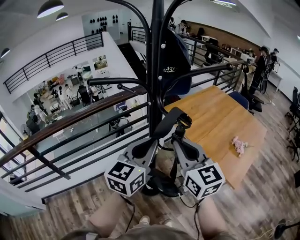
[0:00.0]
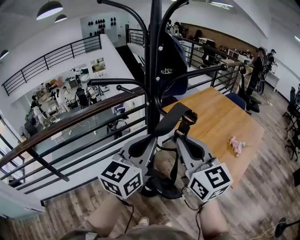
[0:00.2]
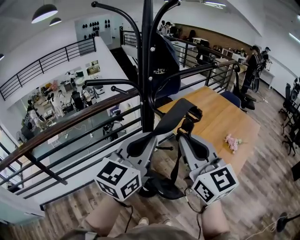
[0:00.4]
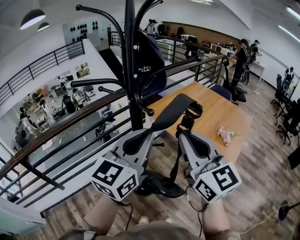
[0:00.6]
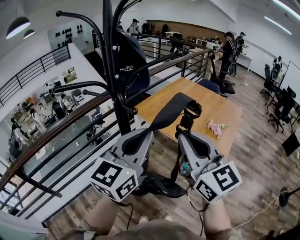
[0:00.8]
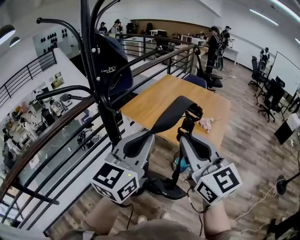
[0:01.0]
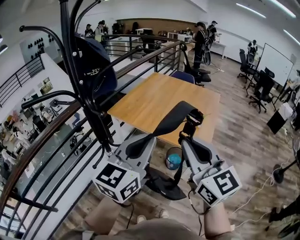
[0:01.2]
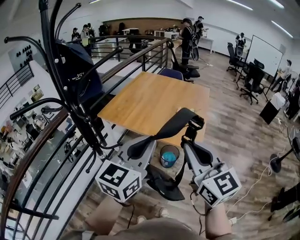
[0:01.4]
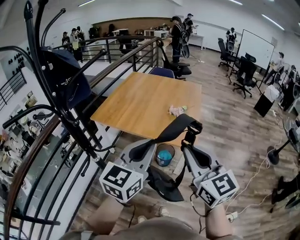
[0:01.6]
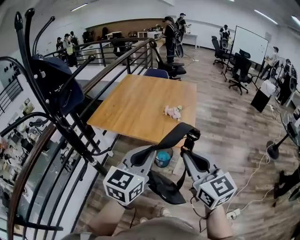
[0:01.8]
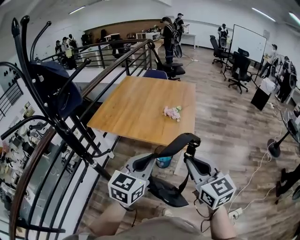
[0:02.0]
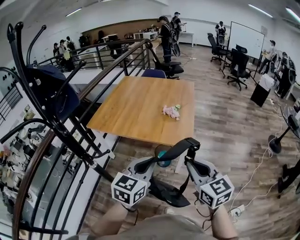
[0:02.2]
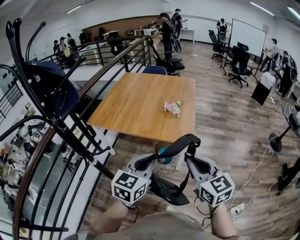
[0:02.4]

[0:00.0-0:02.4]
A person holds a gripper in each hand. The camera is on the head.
0.0 to 1.2 s: The right gripper ends up about 20 cm from where it was, and turns by some 20 degrees. The left gripper moves roughly 20 cm, and swivels roughly 30 degrees.
1.2 to 2.4 s: Both grippers travel together downward and to the right, approximately 20 cm. The left gripper rotates some 20 degrees. Meanwhile the right gripper turns by roughly 20 degrees.

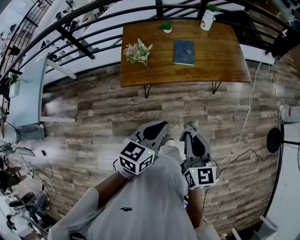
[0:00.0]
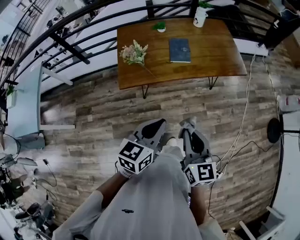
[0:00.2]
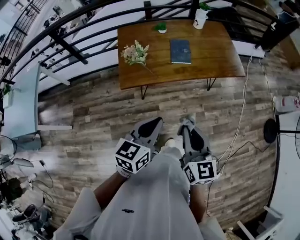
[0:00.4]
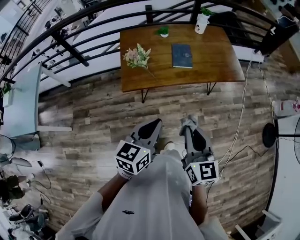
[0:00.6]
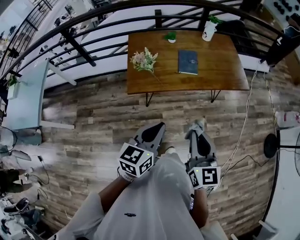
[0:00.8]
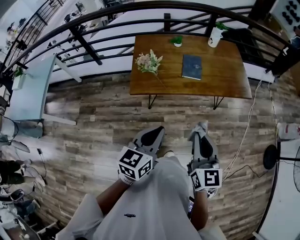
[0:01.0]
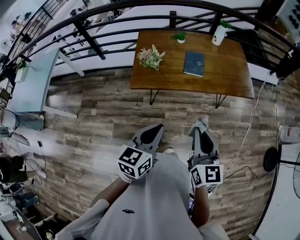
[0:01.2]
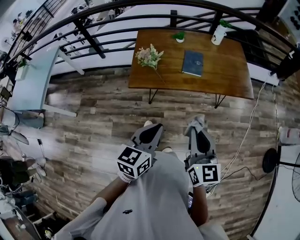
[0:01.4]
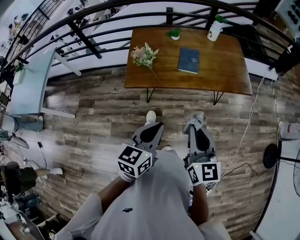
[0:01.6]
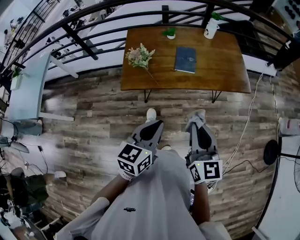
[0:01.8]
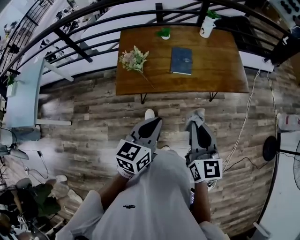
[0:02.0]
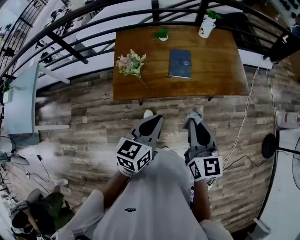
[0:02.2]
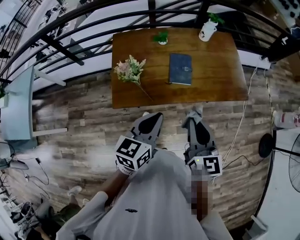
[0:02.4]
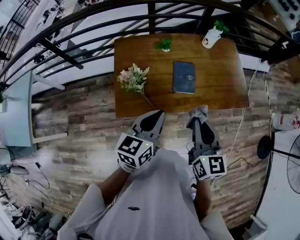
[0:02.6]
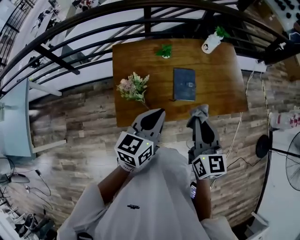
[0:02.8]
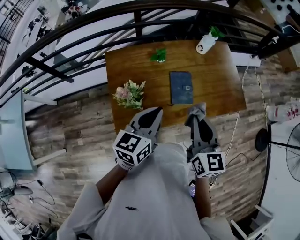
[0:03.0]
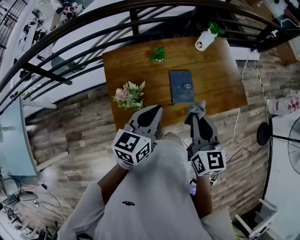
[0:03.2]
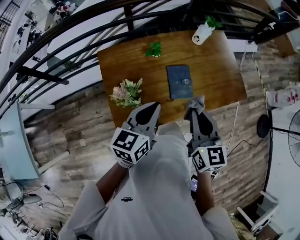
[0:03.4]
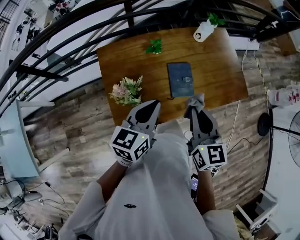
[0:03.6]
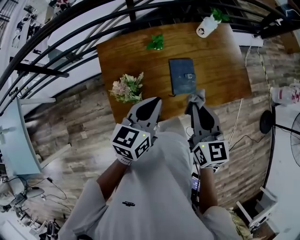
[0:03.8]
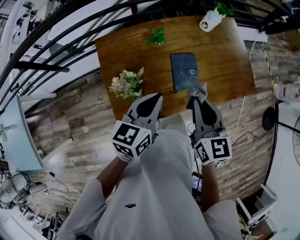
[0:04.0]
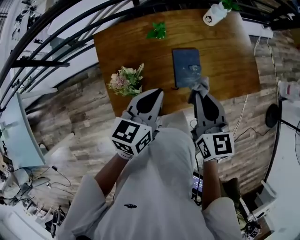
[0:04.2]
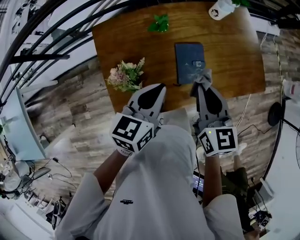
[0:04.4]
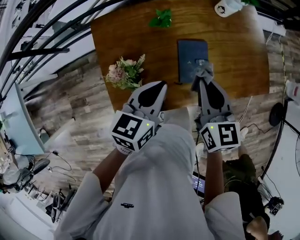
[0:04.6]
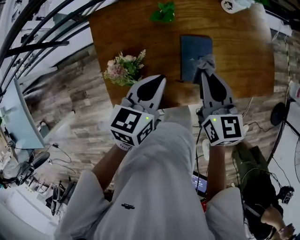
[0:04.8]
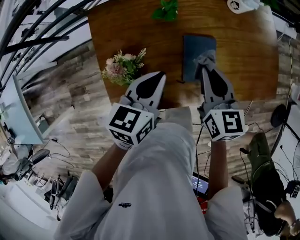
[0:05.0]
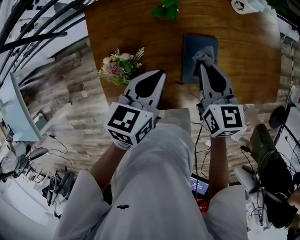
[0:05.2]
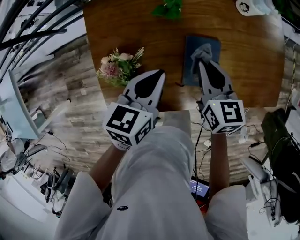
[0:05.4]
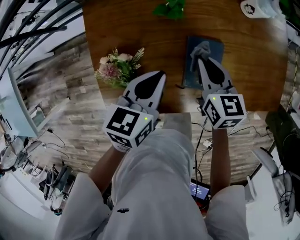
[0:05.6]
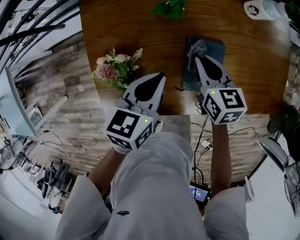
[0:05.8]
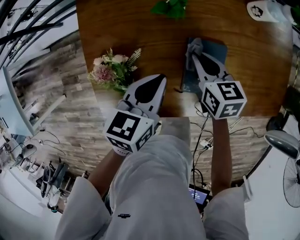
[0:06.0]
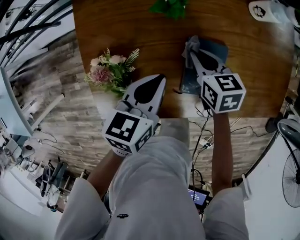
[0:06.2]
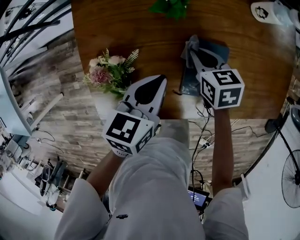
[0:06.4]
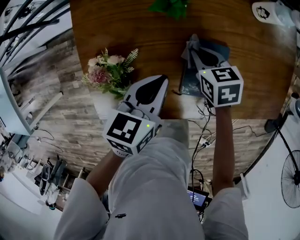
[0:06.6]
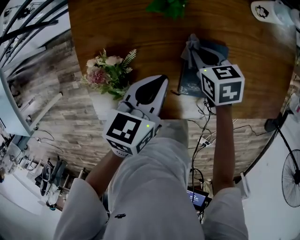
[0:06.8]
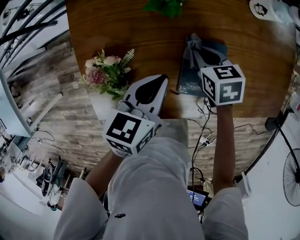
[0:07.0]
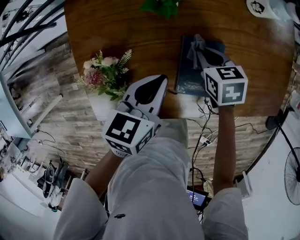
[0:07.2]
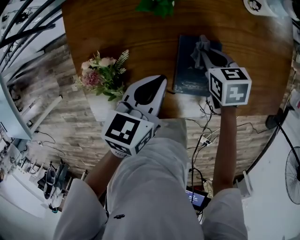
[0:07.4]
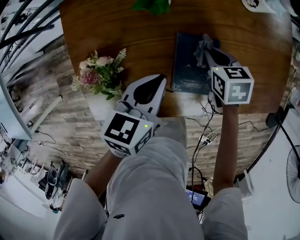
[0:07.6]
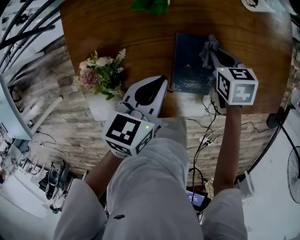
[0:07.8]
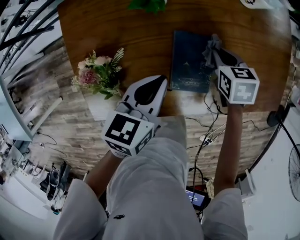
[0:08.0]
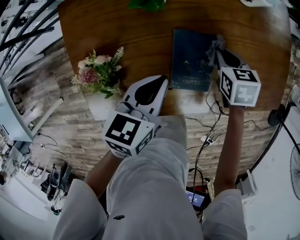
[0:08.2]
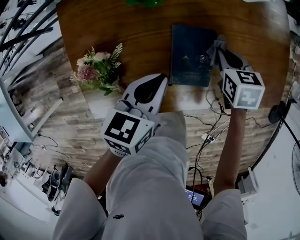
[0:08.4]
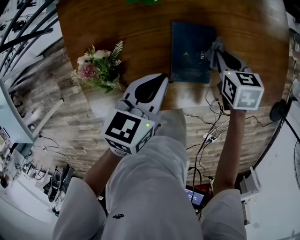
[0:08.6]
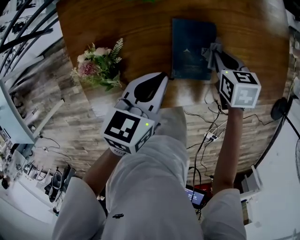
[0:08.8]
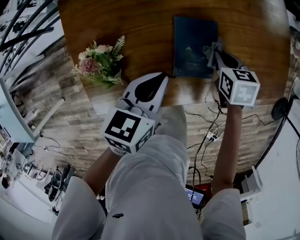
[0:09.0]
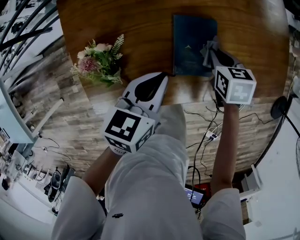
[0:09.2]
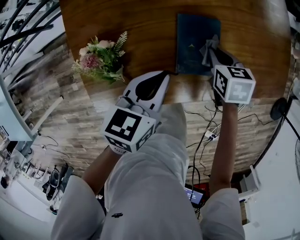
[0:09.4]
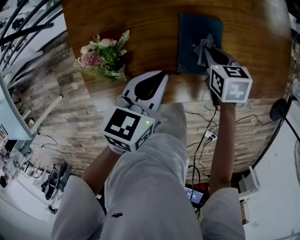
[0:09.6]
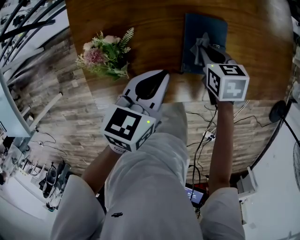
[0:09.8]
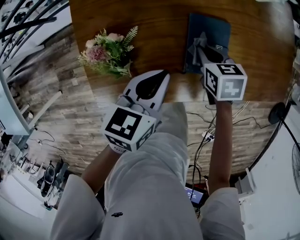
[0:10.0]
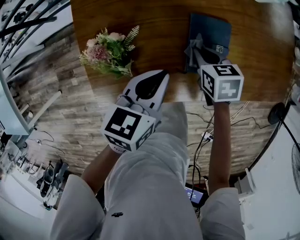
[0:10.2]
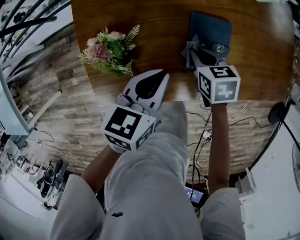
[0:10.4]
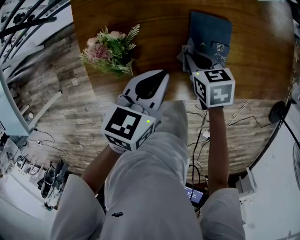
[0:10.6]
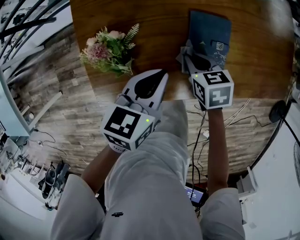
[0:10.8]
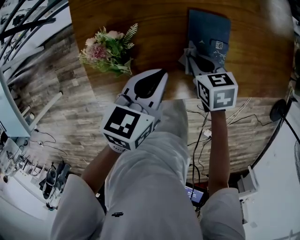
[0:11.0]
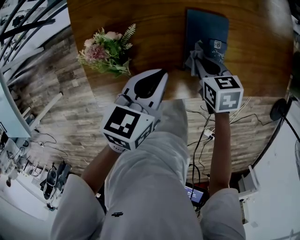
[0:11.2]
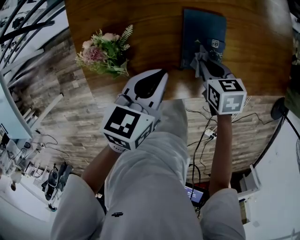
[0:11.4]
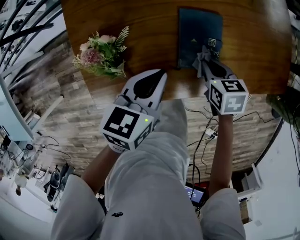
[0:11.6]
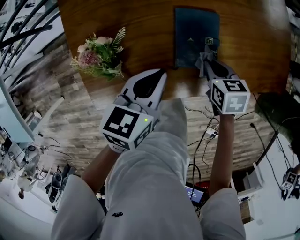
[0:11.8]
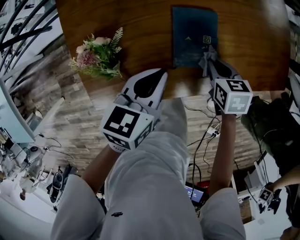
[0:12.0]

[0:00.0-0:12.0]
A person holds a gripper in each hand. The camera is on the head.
0.0 to 1.6 s: The right gripper moves approximately 5 cm.
1.6 to 3.0 s: The two grippers go some 30 cm forward.
3.0 to 4.4 s: Both grippers travel together forward and downward, about 10 cm.
4.4 to 6.0 s: The left gripper is displaced downward and forward by some 15 cm. The right gripper heads downward and forward, covering about 25 cm, and turns by approximately 30 degrees.
6.0 to 7.6 s: The right gripper goes some 10 cm to the right and downward.
7.6 to 9.0 s: The right gripper goes roughly 10 cm backward and to the right.
9.0 to 10.4 s: The right gripper shifts about 10 cm to the left.
10.4 to 12.0 s: The right gripper is displaced to the right by roughly 10 cm.

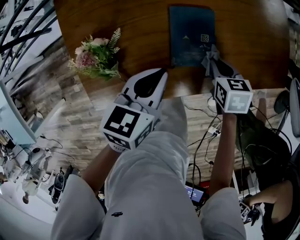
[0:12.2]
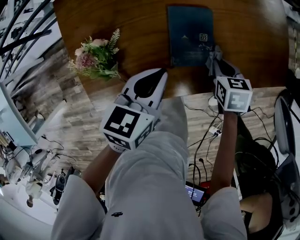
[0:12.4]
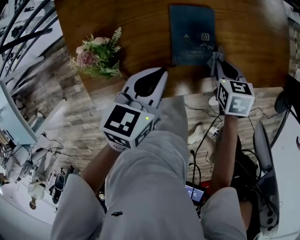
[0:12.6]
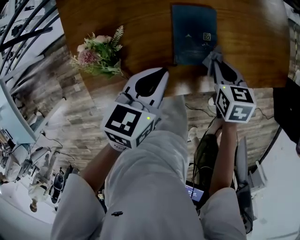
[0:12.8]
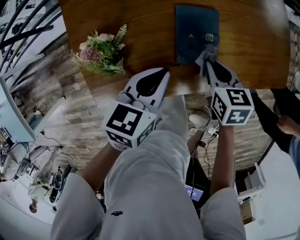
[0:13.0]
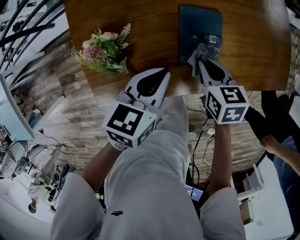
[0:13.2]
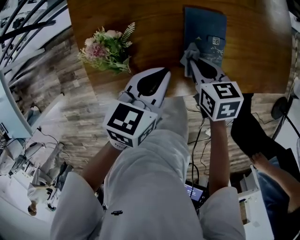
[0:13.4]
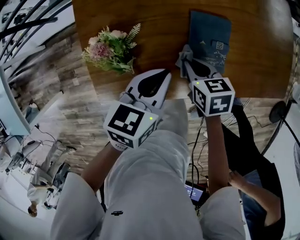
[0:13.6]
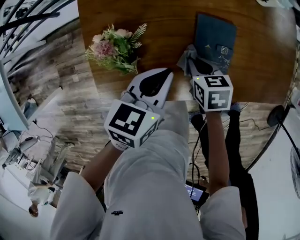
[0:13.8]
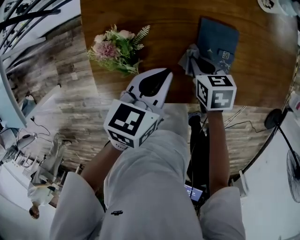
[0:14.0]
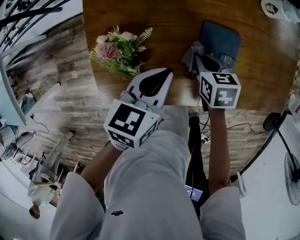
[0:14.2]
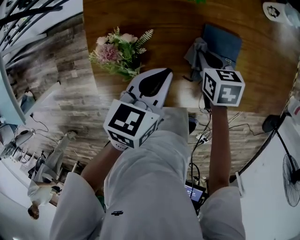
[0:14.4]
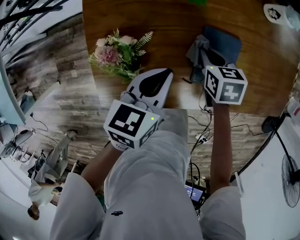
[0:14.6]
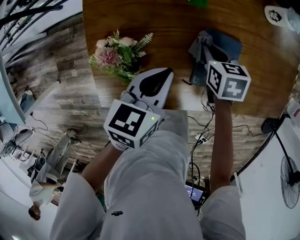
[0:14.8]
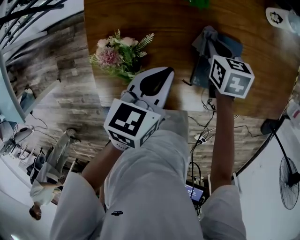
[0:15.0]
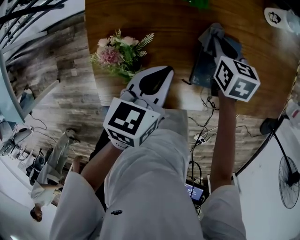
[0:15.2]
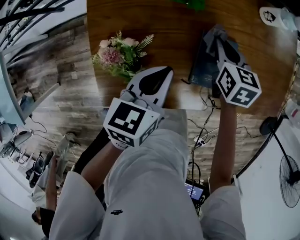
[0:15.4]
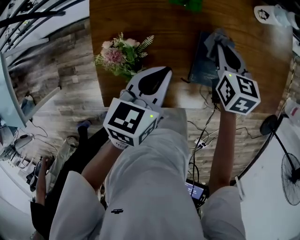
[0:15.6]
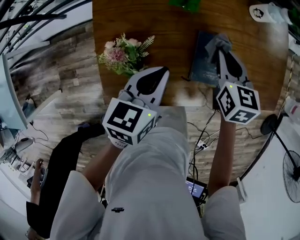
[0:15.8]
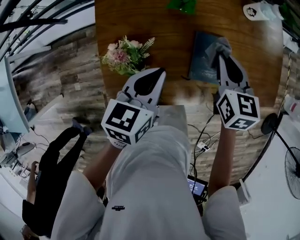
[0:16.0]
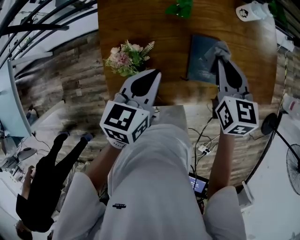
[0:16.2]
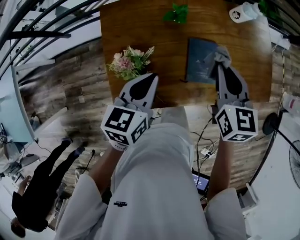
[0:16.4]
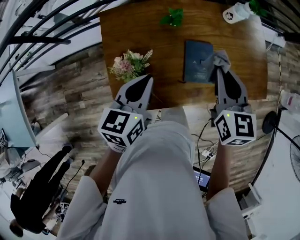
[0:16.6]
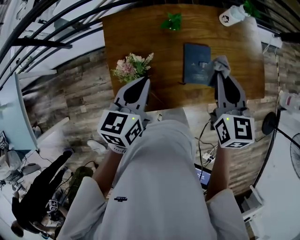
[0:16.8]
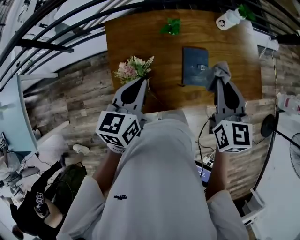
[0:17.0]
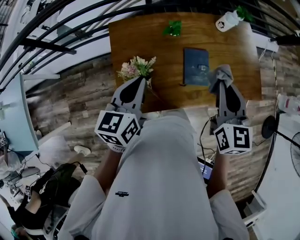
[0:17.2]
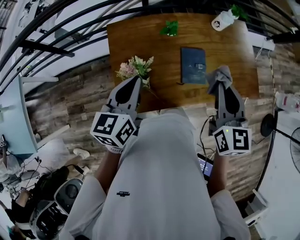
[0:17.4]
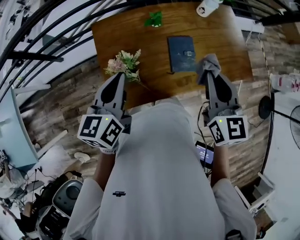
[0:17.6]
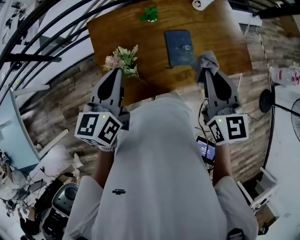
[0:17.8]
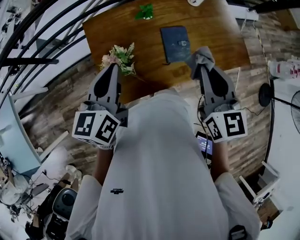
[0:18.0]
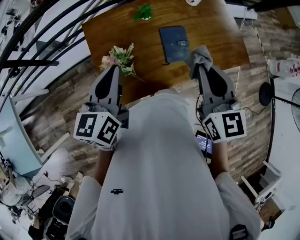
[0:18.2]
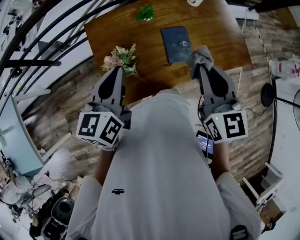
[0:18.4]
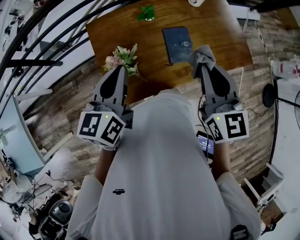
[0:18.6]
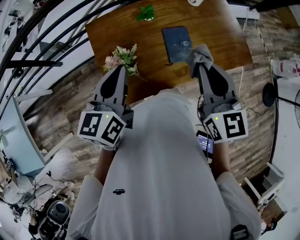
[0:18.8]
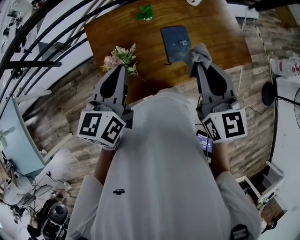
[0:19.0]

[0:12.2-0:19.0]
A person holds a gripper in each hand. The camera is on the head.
12.2 to 13.6 s: The right gripper heads to the left, covering approximately 15 cm.
13.6 to 15.0 s: The left gripper heads forward, covering approximately 5 cm. The right gripper moves forward, approximately 15 cm.
15.0 to 16.2 s: The right gripper heads upward, covering approximately 20 cm, and swivels approximately 30 degrees; the left gripper heads upward, covering about 10 cm.
16.2 to 17.6 s: The left gripper shifts approximately 15 cm upward, to the left and backward, while the right gripper moves upward and backward, about 20 cm.
17.6 to 19.0 s: The grippers stay close to where they were, moving slightly.

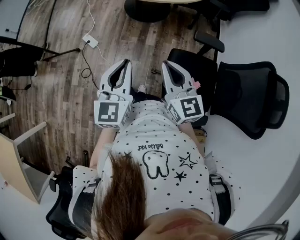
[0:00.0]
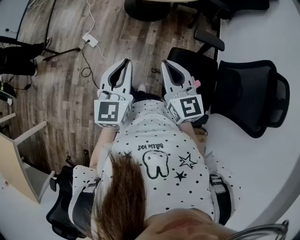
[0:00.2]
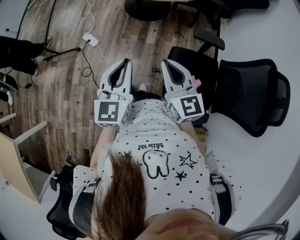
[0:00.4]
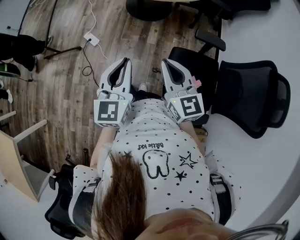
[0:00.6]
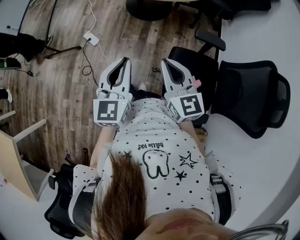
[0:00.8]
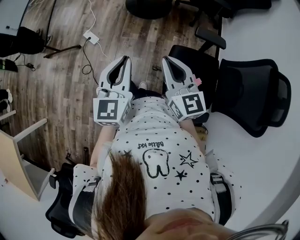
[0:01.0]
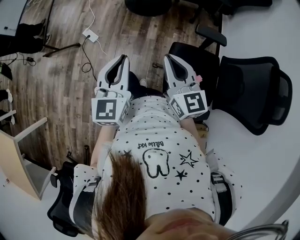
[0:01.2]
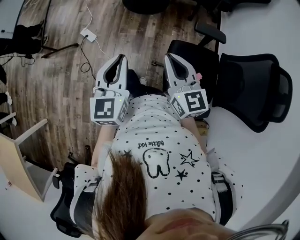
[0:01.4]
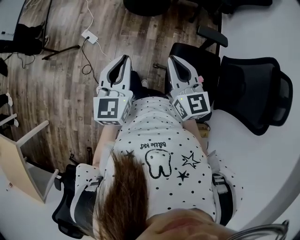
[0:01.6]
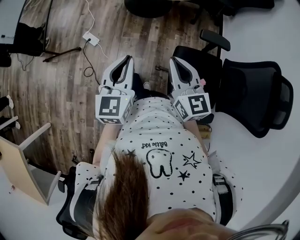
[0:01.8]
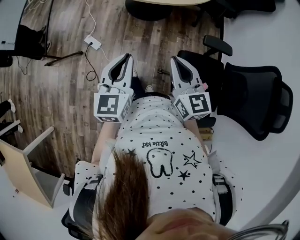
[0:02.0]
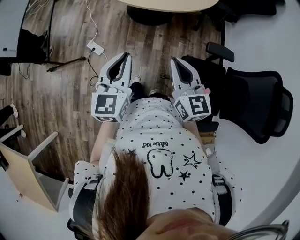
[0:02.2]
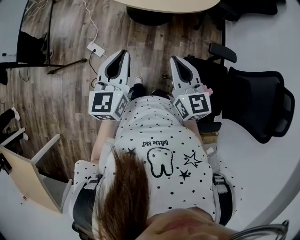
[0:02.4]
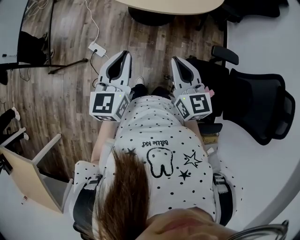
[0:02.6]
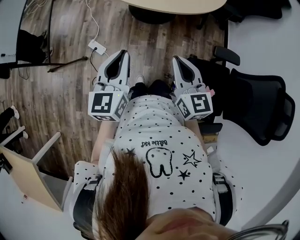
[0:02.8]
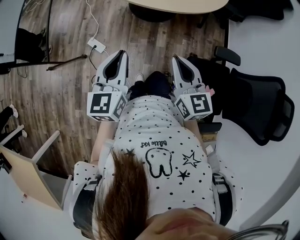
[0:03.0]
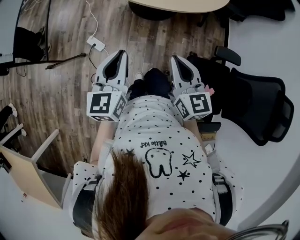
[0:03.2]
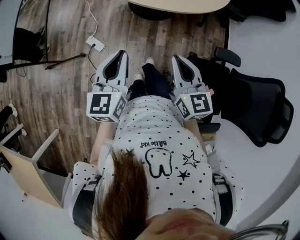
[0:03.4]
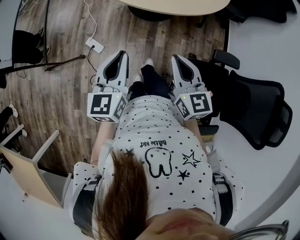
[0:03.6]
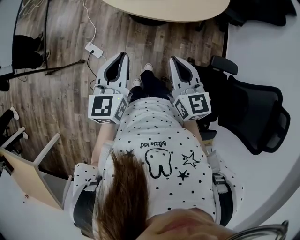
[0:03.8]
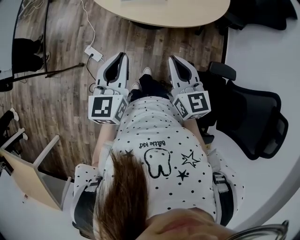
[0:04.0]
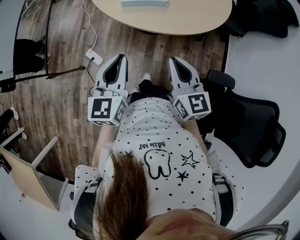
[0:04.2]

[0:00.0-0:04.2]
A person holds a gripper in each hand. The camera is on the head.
0.0 to 1.4 s: Both grippers stay about where they are.
1.4 to 2.8 s: Both grippers travel together forward and to the left, approximately 20 cm.
2.8 to 4.2 s: Both grippers travel together forward, some 15 cm.
